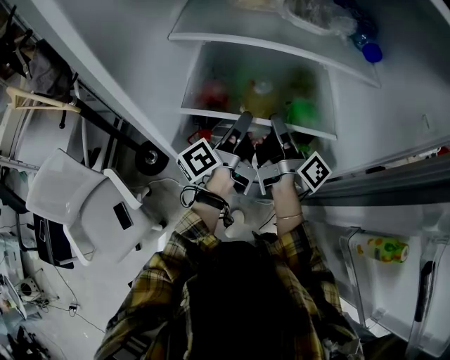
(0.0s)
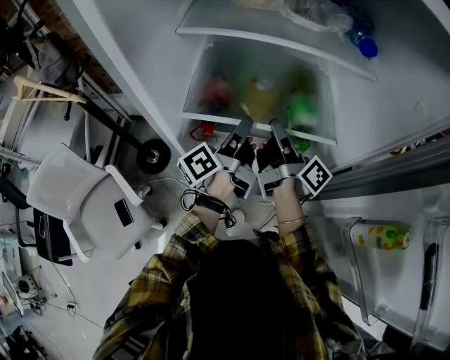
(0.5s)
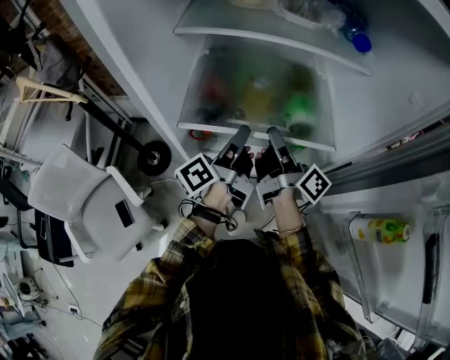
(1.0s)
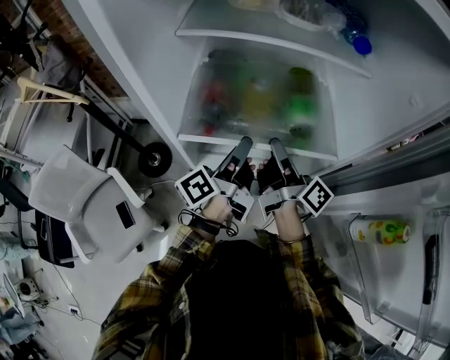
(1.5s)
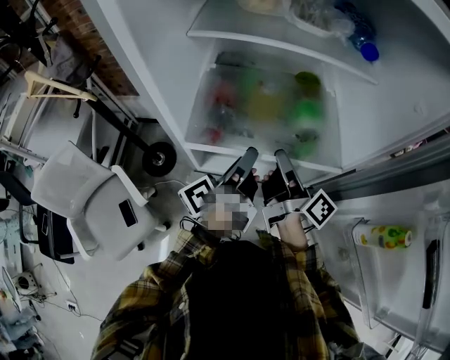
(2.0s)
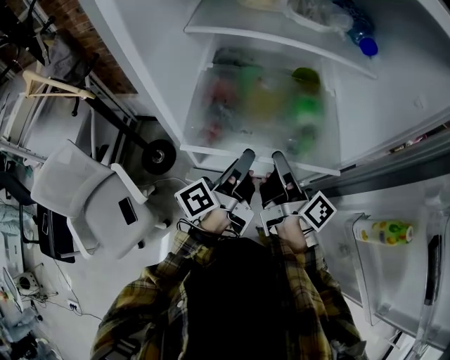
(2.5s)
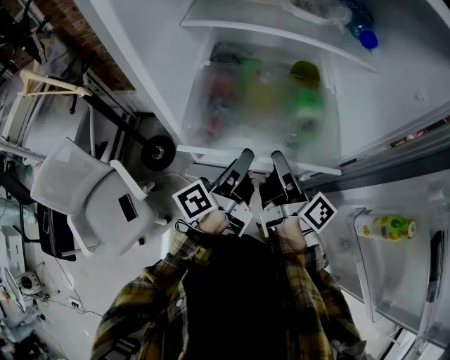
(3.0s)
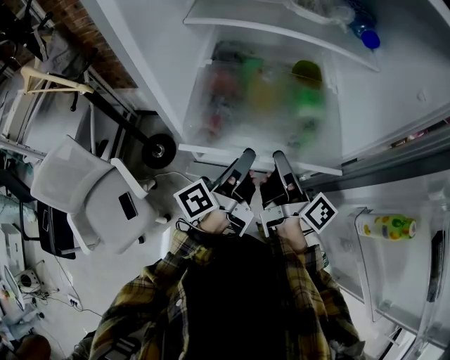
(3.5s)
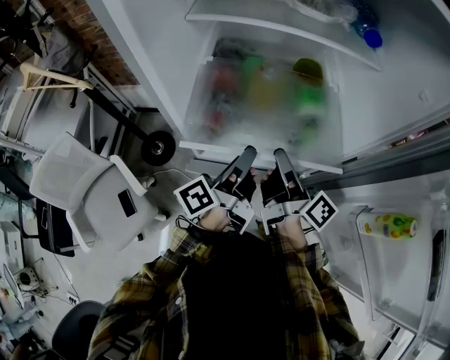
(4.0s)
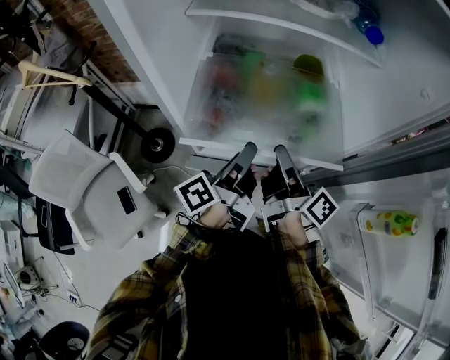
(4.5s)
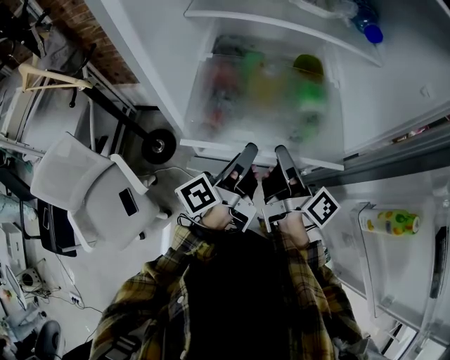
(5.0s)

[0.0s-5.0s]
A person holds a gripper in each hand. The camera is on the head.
0.0s to 2.5s: The two grippers go some 15 cm backward.
2.5s to 5.0s: The grippers move only a little.

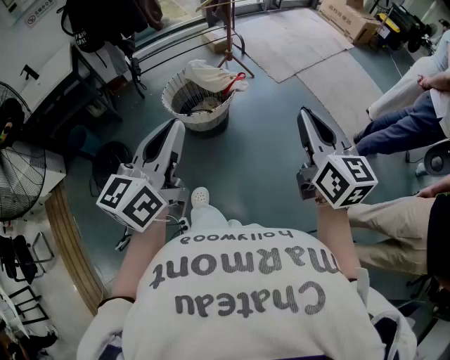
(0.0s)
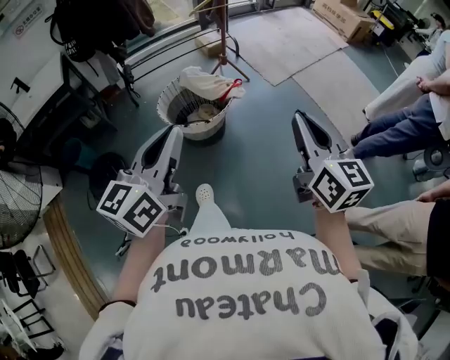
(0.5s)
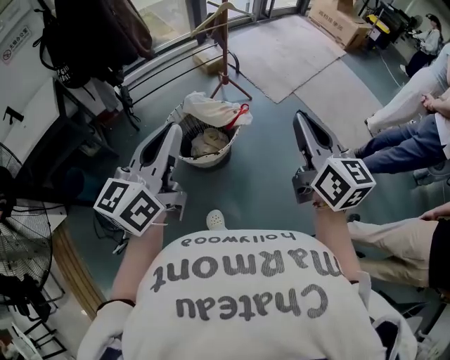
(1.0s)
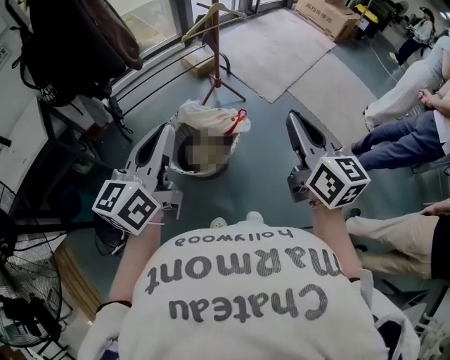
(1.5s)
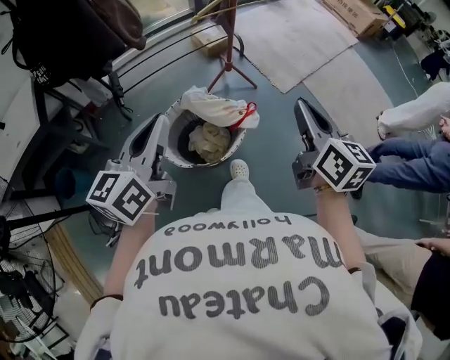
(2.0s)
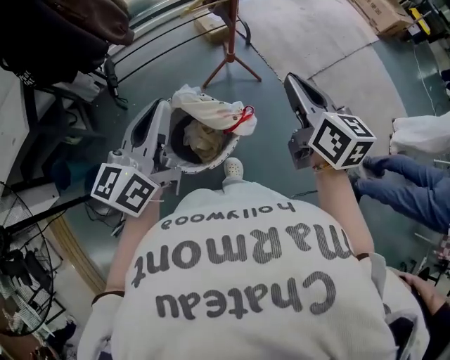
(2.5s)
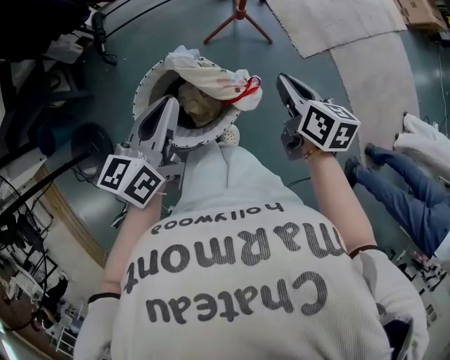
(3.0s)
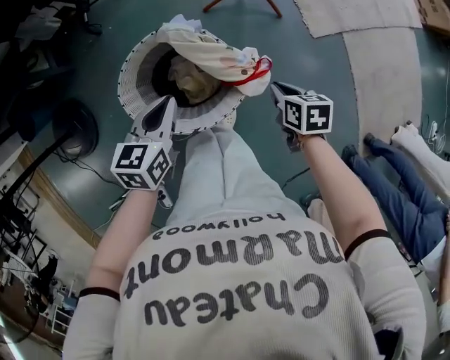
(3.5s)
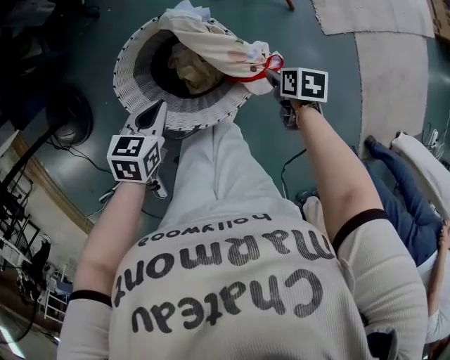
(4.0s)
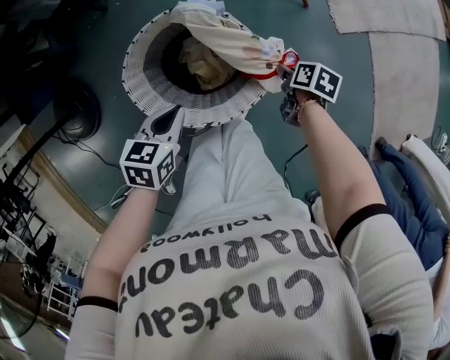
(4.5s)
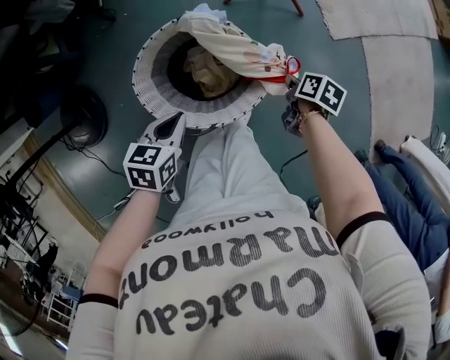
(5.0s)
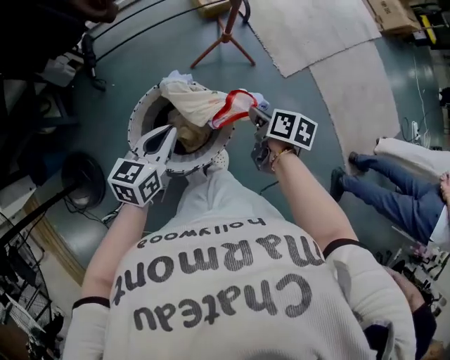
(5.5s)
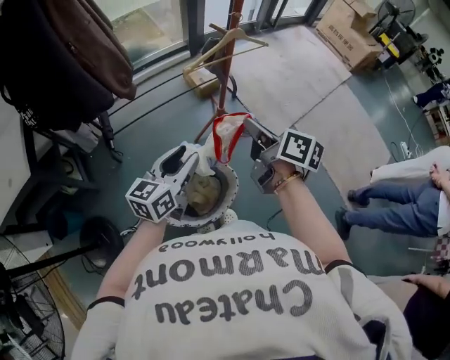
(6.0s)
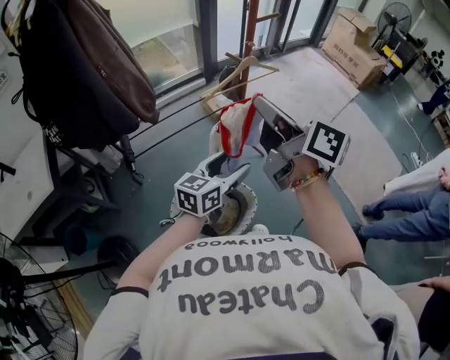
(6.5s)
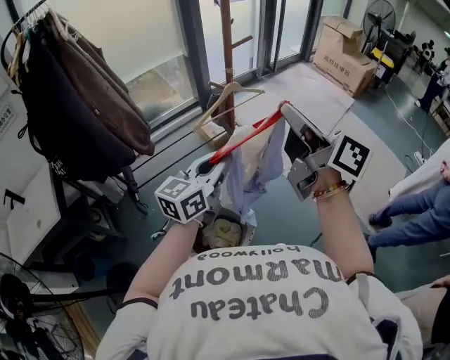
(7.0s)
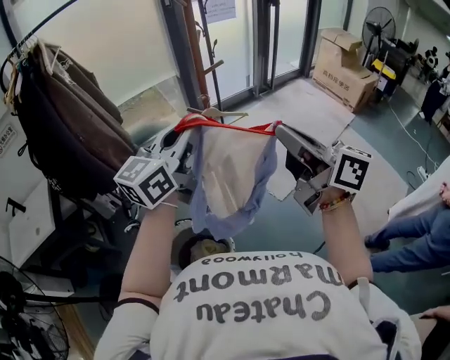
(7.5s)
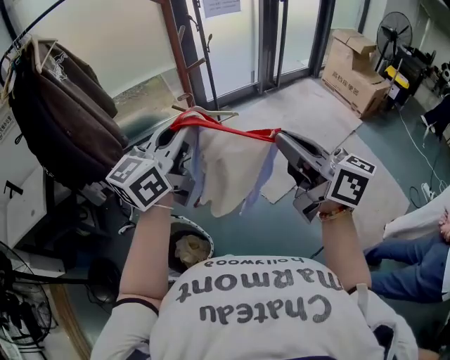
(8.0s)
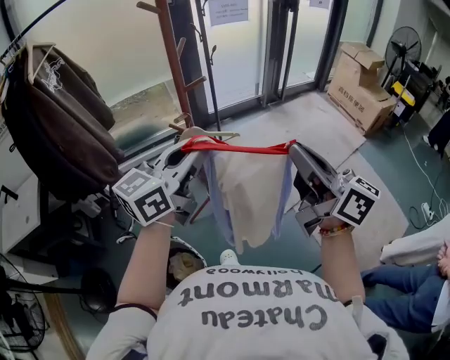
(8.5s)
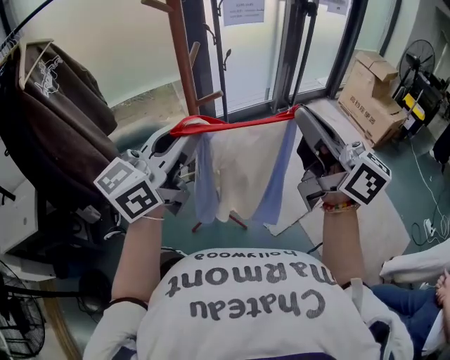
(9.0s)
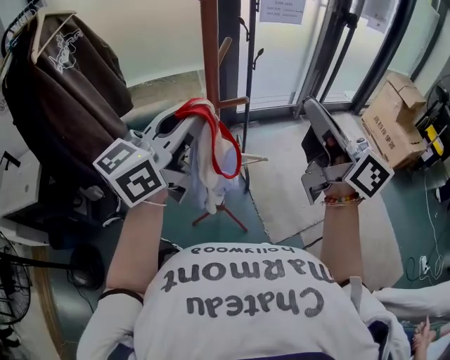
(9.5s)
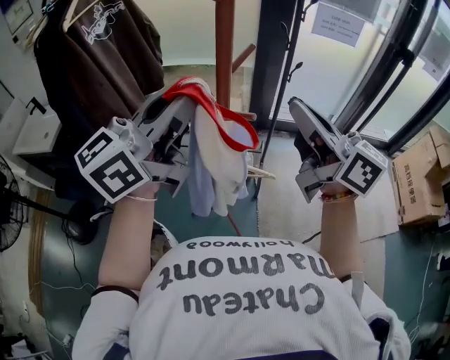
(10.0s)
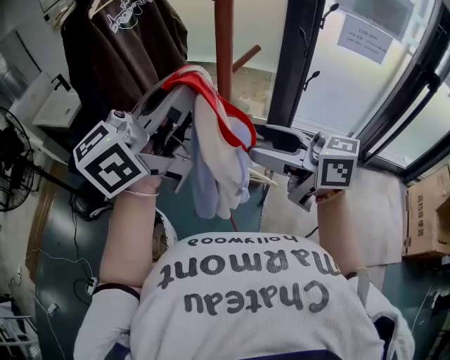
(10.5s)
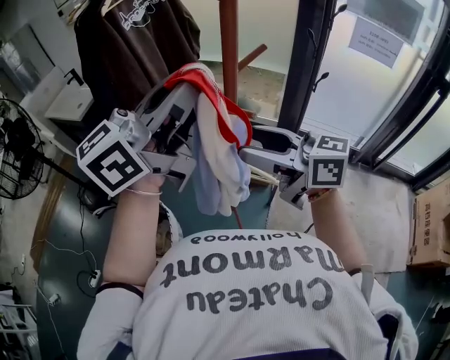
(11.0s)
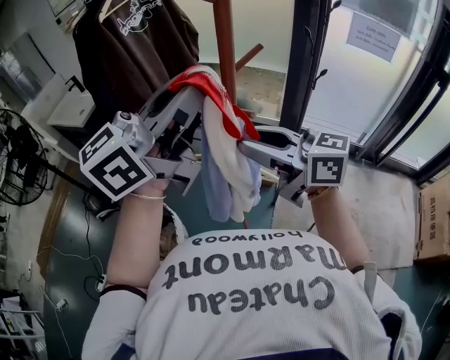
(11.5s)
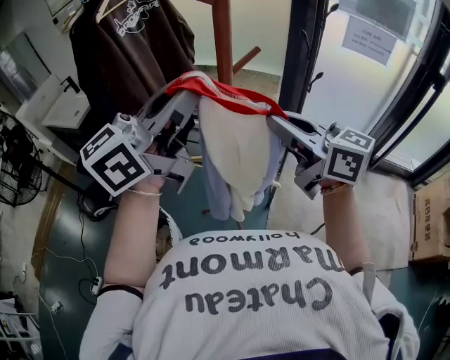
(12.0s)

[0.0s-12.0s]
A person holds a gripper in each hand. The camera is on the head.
0.0s to 2.0s: The two grippers travel together, forward, about 40 cm.
2.0s to 4.0s: The two grippers go about 50 cm downward. The right gripper tilts its fingers about 60 degrees downward, and opens, while the left gripper tilts its fingers approximately 50 degrees downward.
4.0s to 6.0s: Both grippers move upward, some 40 cm. The left gripper angles its fingers upward, by roughly 40 degrees, and opens, while the right gripper points its fingers some 50 degrees further upward, and closes up.
6.0s to 8.0s: The left gripper goes some 40 cm upward, to the right and forward, rotates some 20 degrees, and closes its fingers; the right gripper moves to the right and upward, roughly 35 cm, and turns by roughly 40 degrees.
8.0s to 10.0s: The right gripper moves about 40 cm, and swivels some 30 degrees. The left gripper shifts by roughly 30 cm, and changes its angle by roughly 20 degrees.
10.0s to 12.0s: The right gripper rotates some 20 degrees, and opens, then closes once more.

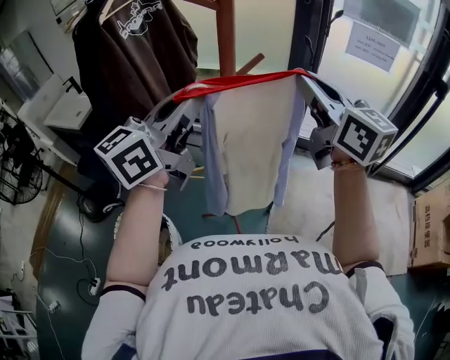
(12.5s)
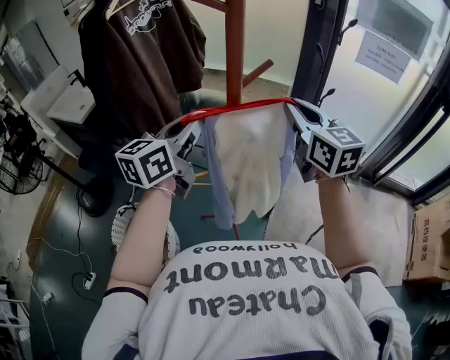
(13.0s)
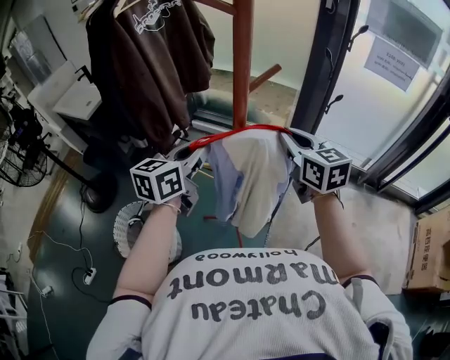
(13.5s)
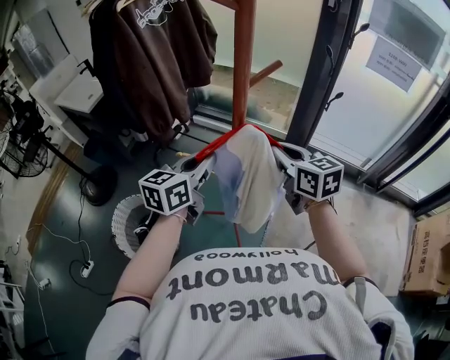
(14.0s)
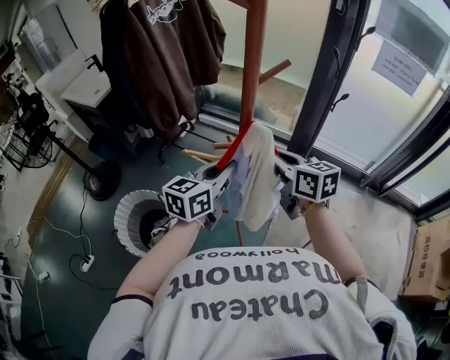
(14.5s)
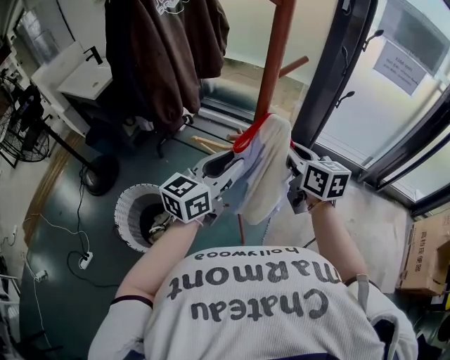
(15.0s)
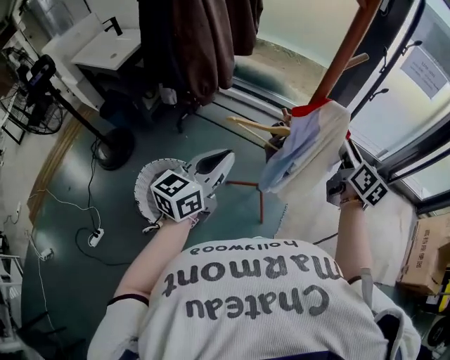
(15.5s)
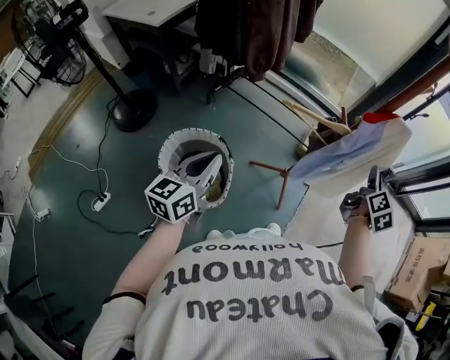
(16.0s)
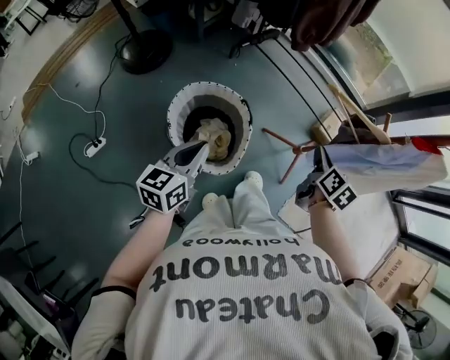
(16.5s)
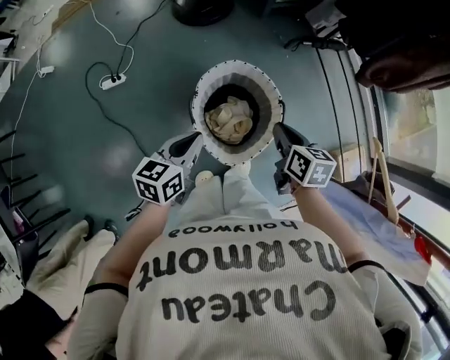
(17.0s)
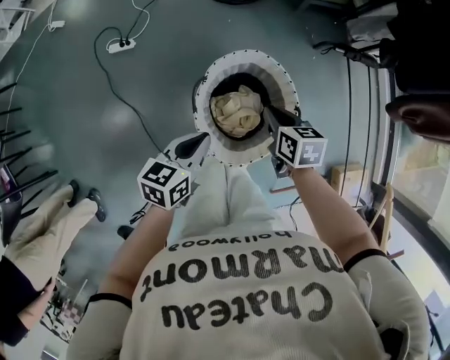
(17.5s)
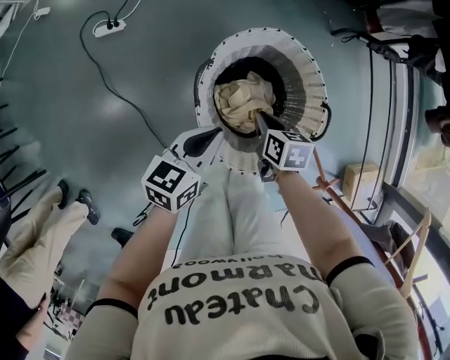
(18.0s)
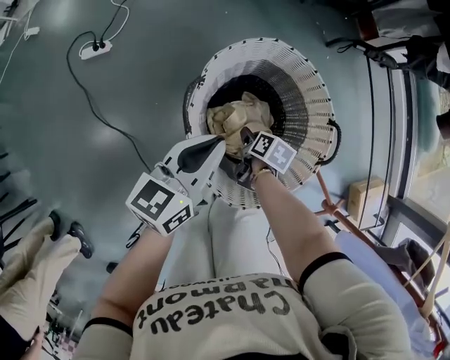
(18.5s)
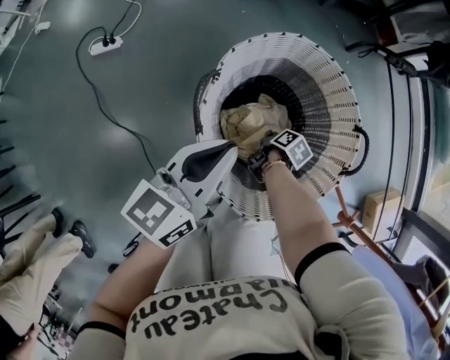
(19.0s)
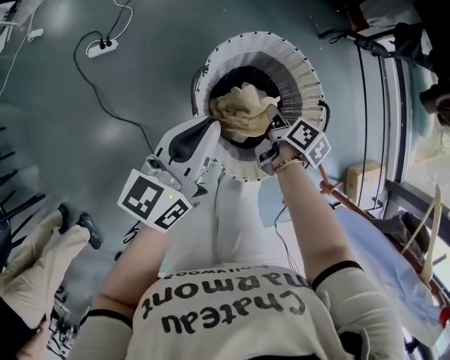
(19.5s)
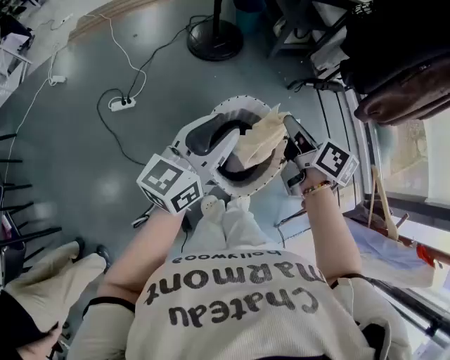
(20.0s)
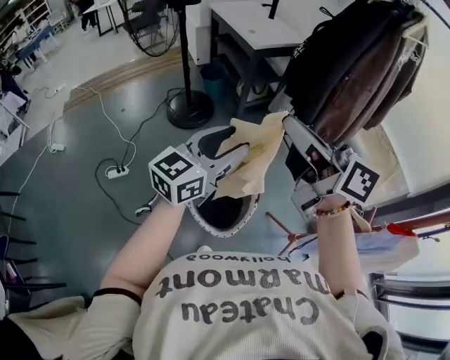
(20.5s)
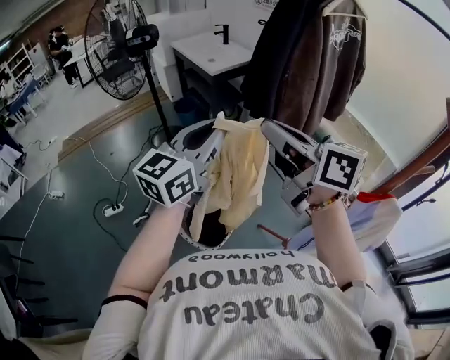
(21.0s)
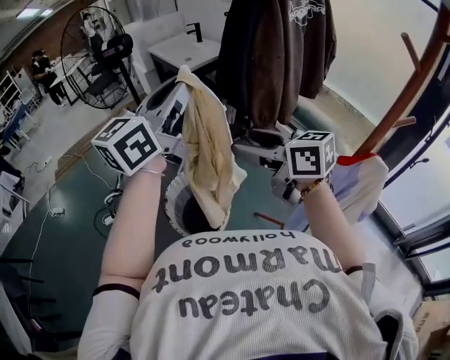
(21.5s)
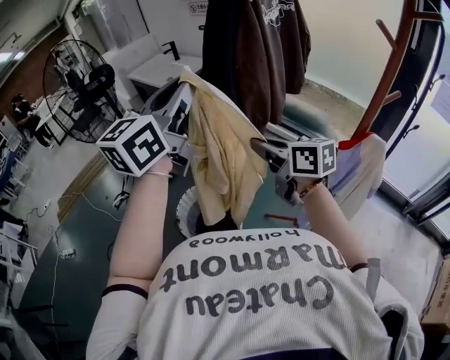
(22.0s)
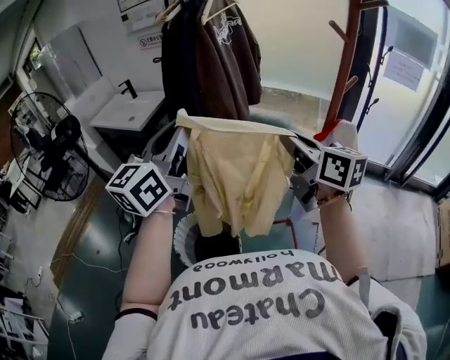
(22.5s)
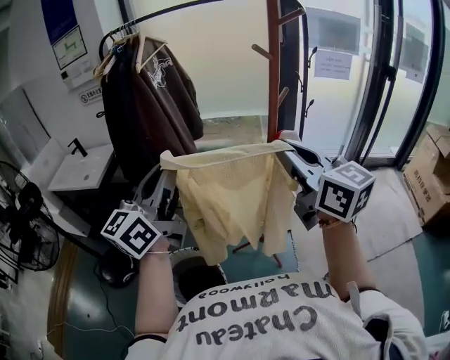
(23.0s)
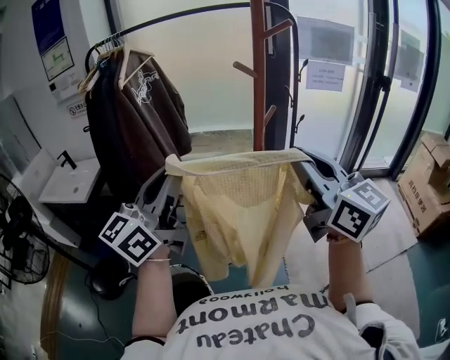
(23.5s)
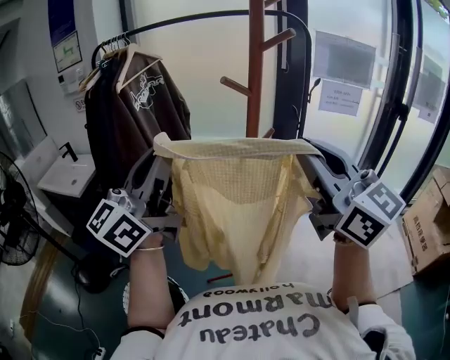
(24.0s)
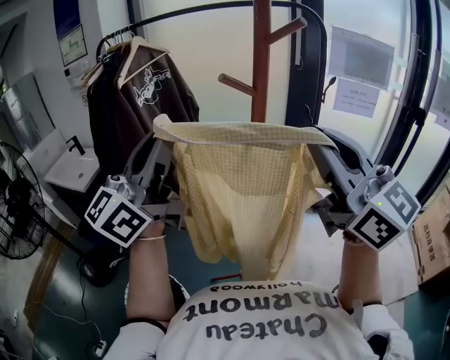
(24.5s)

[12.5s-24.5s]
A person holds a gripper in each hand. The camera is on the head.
12.5s to 14.5s: The two grippers go roughly 25 cm downward. The right gripper rotates some 30 degrees, while the left gripper rotates roughly 20 degrees.
14.5s to 16.5s: The right gripper shifts about 35 cm to the left, downward and backward, and rotates roughly 30 degrees. The left gripper heads to the left, backward and downward, covering some 50 cm, changes its angle by some 30 degrees, and opens and closes again.
16.5s to 18.5s: The right gripper moves downward, approximately 50 cm, changes its angle by roughly 50 degrees, and opens up, while the left gripper moves downward, about 25 cm, and swivels roughly 30 degrees.
18.5s to 20.5s: The right gripper travels upward by approximately 90 cm, points its fingers some 70 degrees further upward, and closes; the left gripper goes approximately 50 cm upward, swivels roughly 40 degrees, and opens its fingers.
20.5s to 22.5s: The left gripper heads upward, covering approximately 20 cm, rotates some 20 degrees, and closes its fingers, while the right gripper moves up and down over about 10 cm, changing direction 2 times, swivels some 60 degrees, and opens, then closes again.
22.5s to 24.5s: The left gripper goes approximately 30 cm to the right, forward and upward, and turns by some 30 degrees. The right gripper shifts approximately 30 cm to the right and upward, and turns by approximately 40 degrees.
